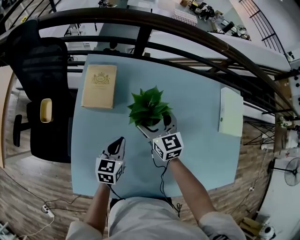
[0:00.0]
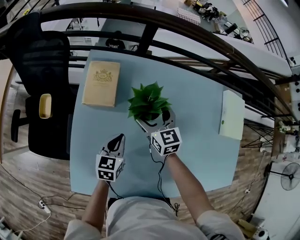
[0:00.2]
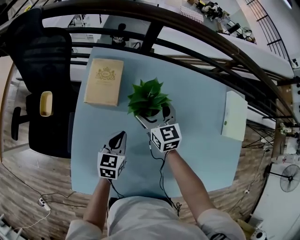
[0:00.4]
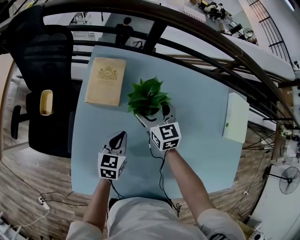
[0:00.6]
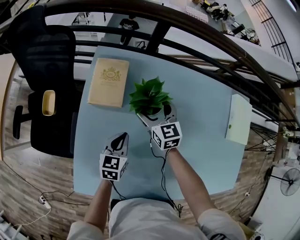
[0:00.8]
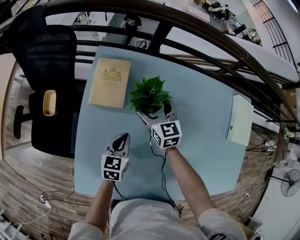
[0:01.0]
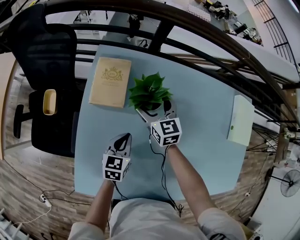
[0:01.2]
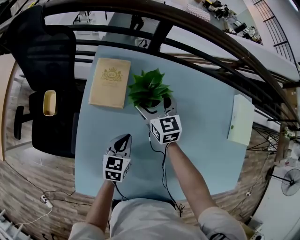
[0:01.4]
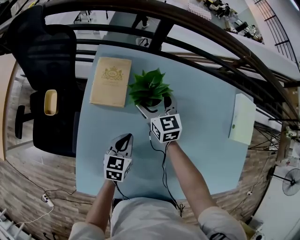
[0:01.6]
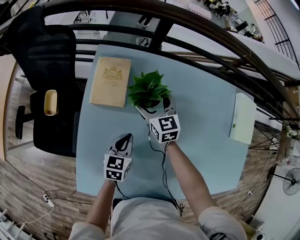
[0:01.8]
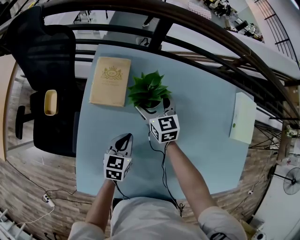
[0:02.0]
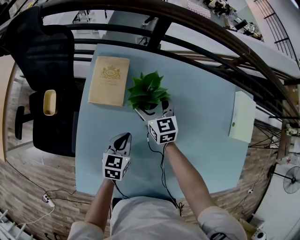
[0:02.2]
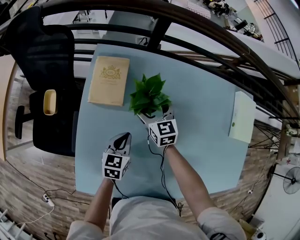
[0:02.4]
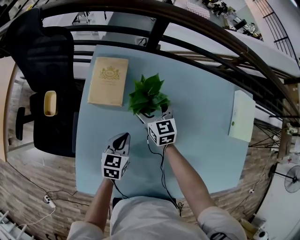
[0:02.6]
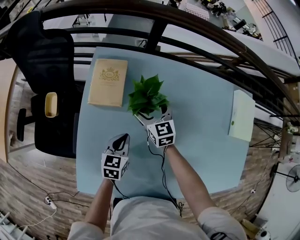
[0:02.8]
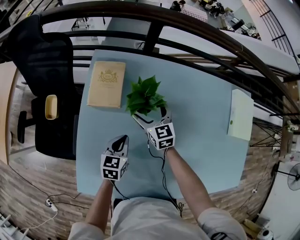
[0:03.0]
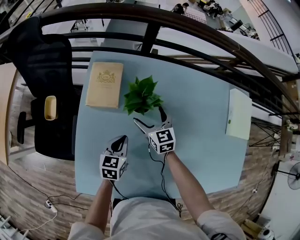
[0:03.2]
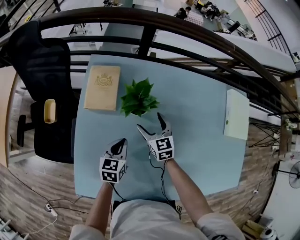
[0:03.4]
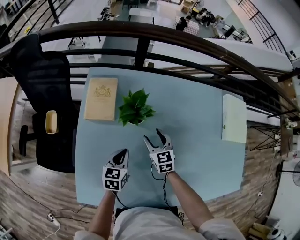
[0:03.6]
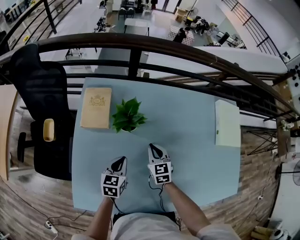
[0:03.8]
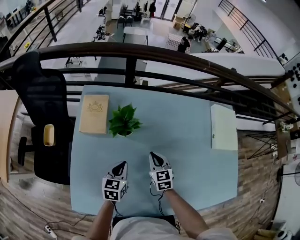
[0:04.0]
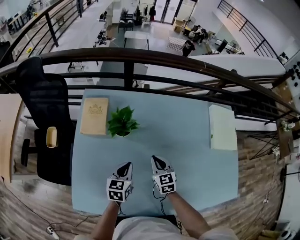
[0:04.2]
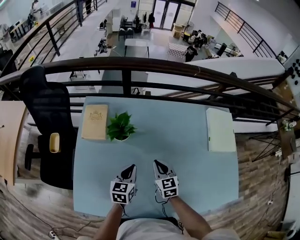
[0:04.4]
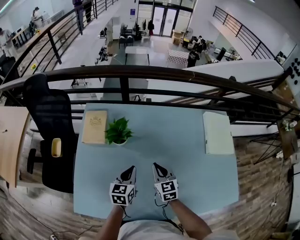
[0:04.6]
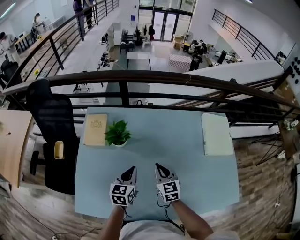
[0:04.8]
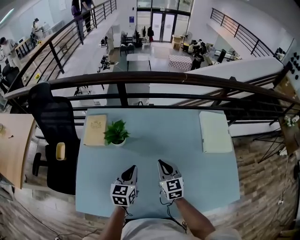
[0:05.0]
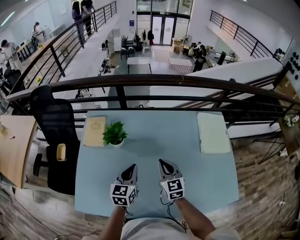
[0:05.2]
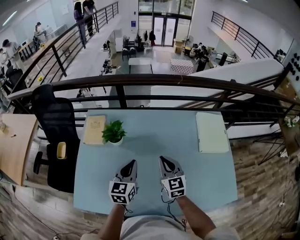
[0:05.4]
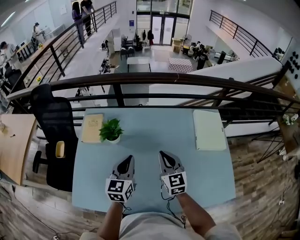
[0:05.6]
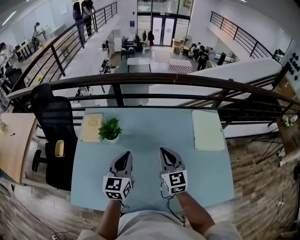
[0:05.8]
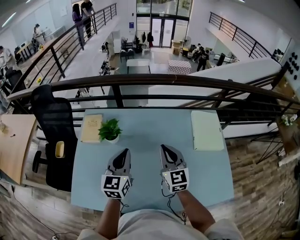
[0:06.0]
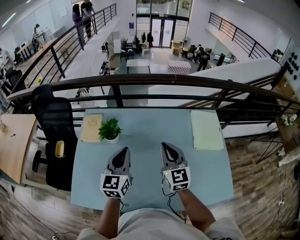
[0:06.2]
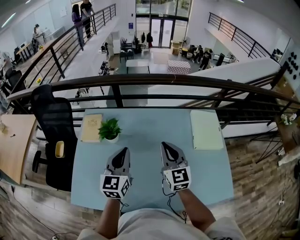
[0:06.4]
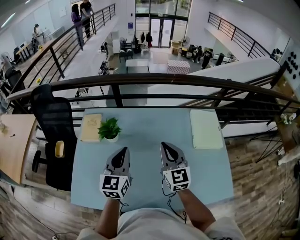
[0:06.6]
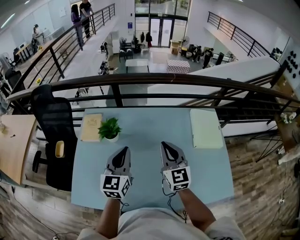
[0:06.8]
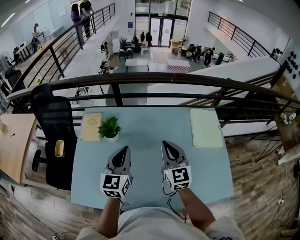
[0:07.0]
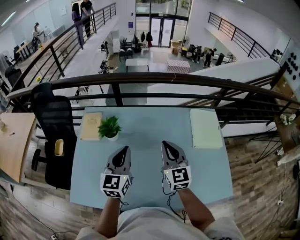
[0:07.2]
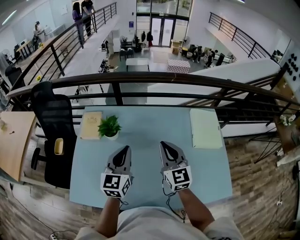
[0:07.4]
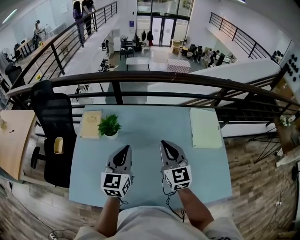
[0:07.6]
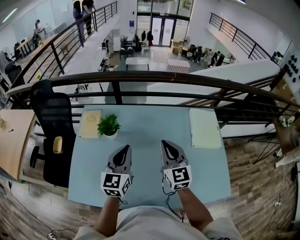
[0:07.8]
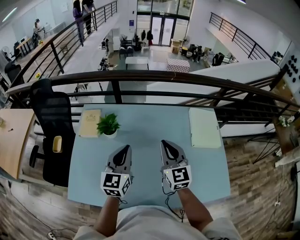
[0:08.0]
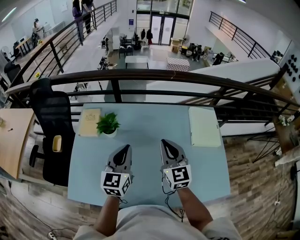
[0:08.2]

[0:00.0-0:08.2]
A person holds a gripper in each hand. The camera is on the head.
0:00.0 to 0:01.6: The right gripper goes roughly 10 cm forward and to the left.
0:01.6 to 0:03.2: The right gripper heads backward, covering some 5 cm.
0:03.2 to 0:05.0: The left gripper goes some 20 cm to the right and upward; the right gripper shifts about 30 cm to the right, backward and upward, and closes.
0:05.0 to 0:06.6: Both grippers travel together upward, about 15 cm. The left gripper changes its angle by roughly 20 degrees.
0:06.6 to 0:08.2: The grippers move only a little.

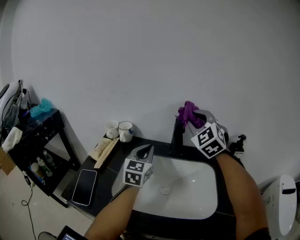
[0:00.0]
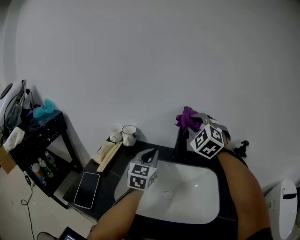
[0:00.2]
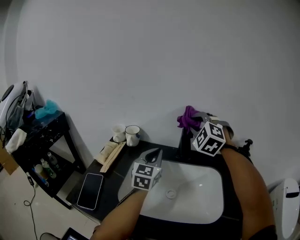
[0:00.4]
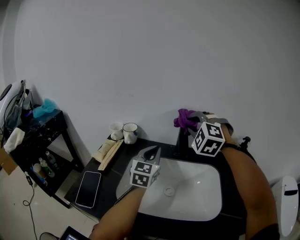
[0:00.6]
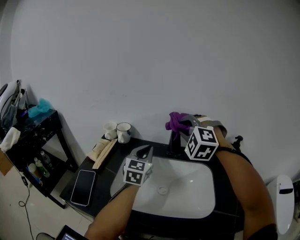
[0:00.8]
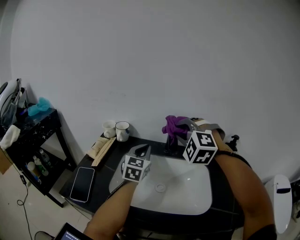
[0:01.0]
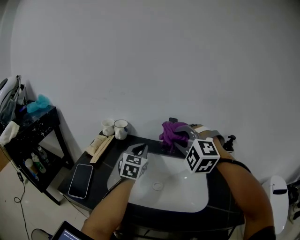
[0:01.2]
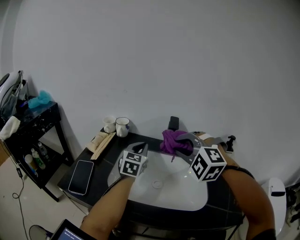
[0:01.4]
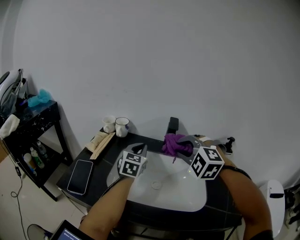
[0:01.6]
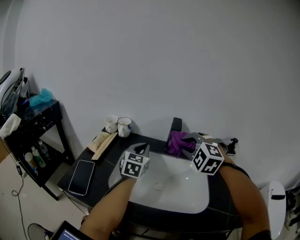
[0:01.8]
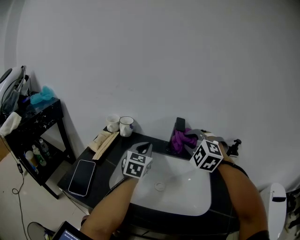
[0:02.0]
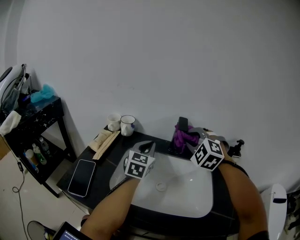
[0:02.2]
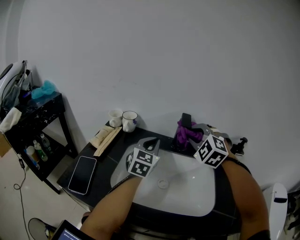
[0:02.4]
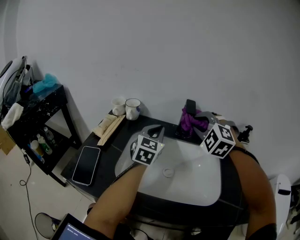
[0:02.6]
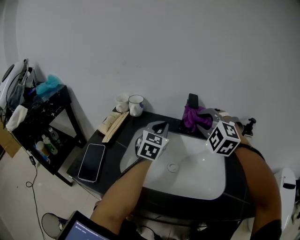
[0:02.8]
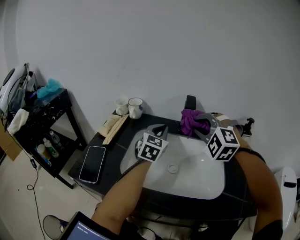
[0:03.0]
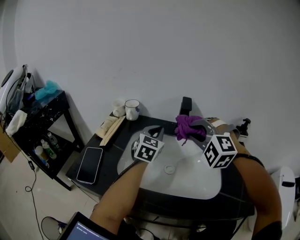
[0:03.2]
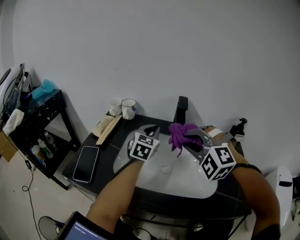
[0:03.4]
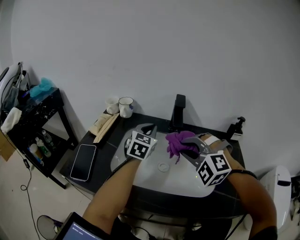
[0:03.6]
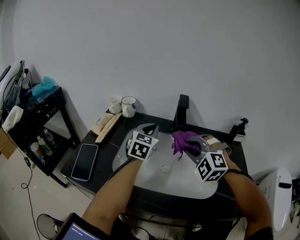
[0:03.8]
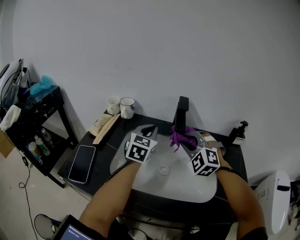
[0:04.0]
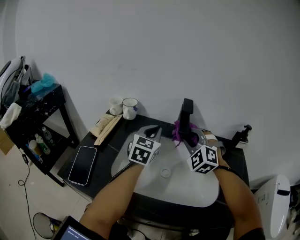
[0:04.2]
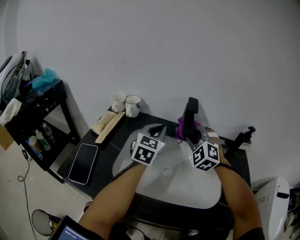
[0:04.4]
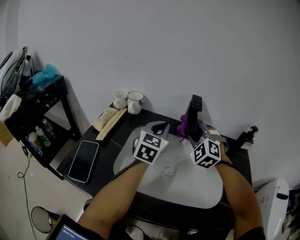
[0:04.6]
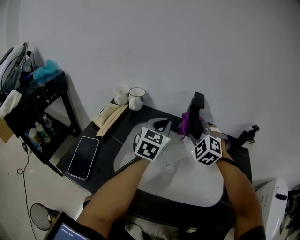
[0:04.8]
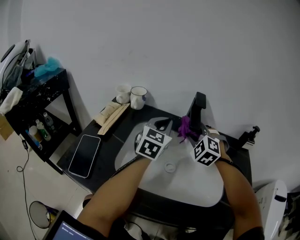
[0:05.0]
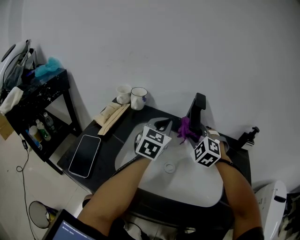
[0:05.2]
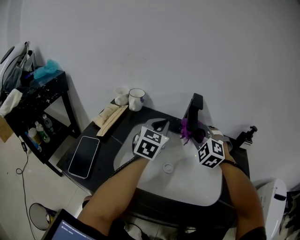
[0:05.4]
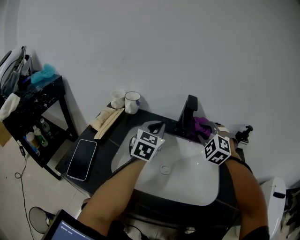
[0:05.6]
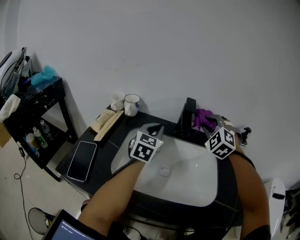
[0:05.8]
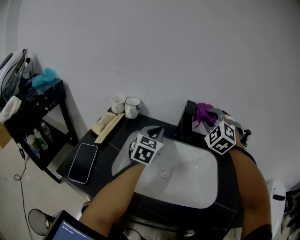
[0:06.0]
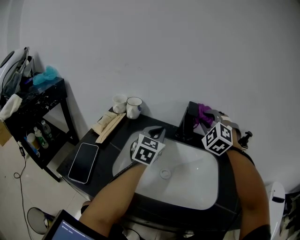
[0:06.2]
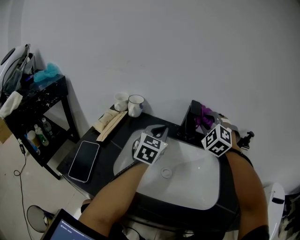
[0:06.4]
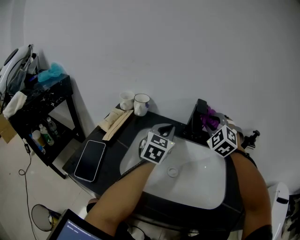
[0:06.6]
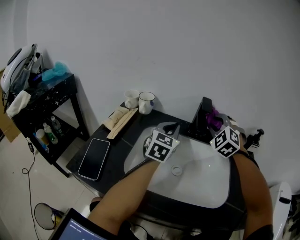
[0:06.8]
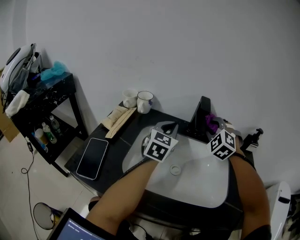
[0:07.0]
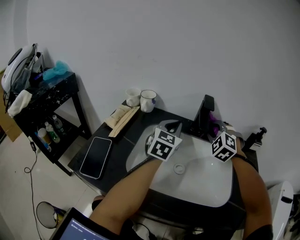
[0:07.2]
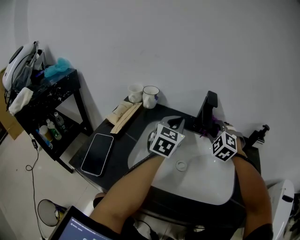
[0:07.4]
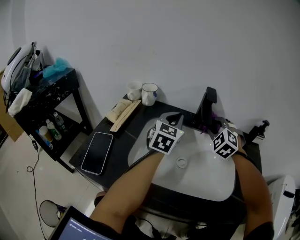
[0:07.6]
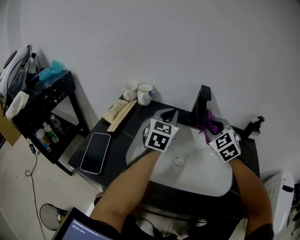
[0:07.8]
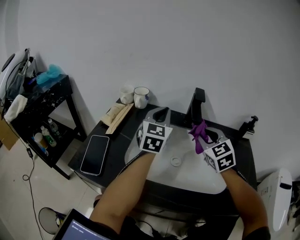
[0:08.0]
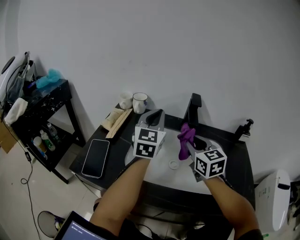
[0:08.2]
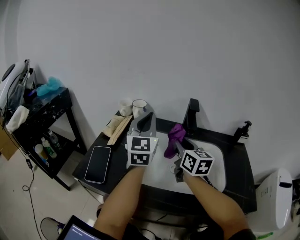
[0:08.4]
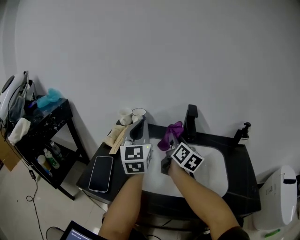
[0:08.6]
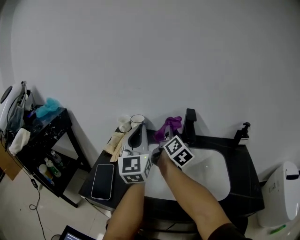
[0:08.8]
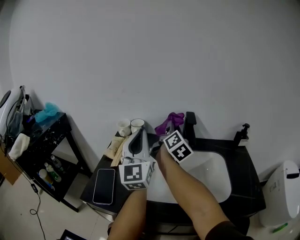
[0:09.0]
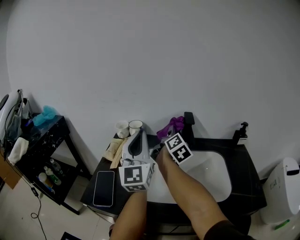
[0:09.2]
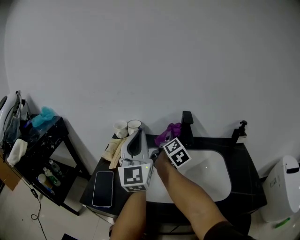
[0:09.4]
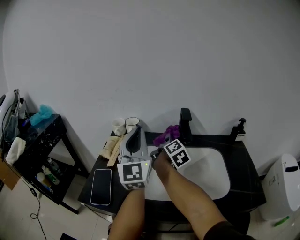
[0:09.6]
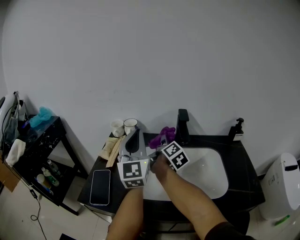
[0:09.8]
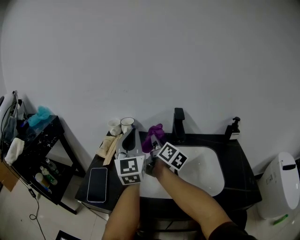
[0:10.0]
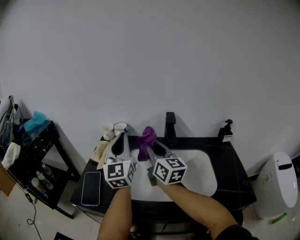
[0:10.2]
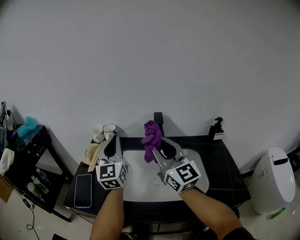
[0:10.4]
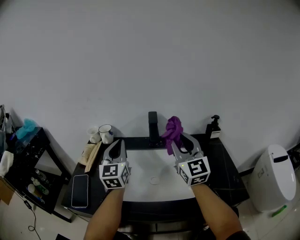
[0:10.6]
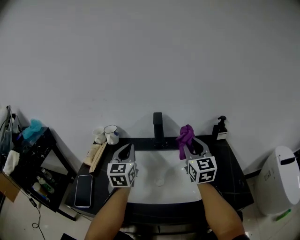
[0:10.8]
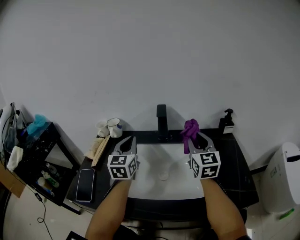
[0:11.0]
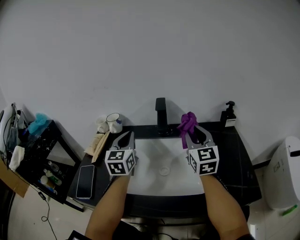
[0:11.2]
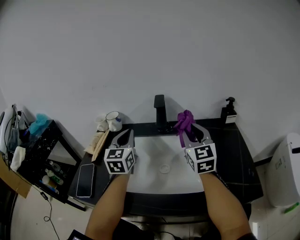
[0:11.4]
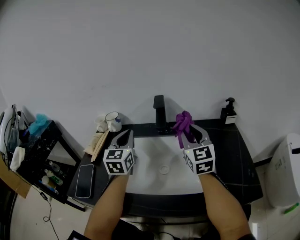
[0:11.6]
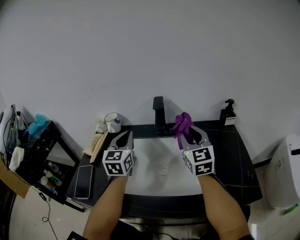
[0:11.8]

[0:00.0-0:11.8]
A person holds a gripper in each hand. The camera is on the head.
0:00.0 to 0:01.4: The right gripper is displaced backward and downward by about 15 cm, and turns by about 40 degrees.
0:01.4 to 0:03.0: The right gripper is displaced forward by approximately 5 cm.
0:03.0 to 0:04.4: The right gripper travels downward and forward by some 10 cm.
0:04.4 to 0:06.0: The right gripper shifts approximately 10 cm upward and to the right.
0:06.0 to 0:07.4: The right gripper heads downward, covering approximately 10 cm.
0:07.4 to 0:08.8: The left gripper travels upward, to the left and backward by approximately 20 cm, and turns by roughly 30 degrees. The right gripper travels to the left and upward by roughly 15 cm, goes backward and returns, some 10 cm each way, and rotates around the line of its fingers by about 110 degrees, clockwise from behind.
0:08.8 to 0:10.4: The right gripper moves backward and upward, roughly 20 cm, and rolls counterclockwise, seen from behind, by approximately 40 degrees.
0:10.4 to 0:11.8: The right gripper heads to the right, downward and forward, covering some 15 cm, and changes its angle by some 30 degrees. The left gripper goes roughly 10 cm downward and to the right, and changes its angle by some 20 degrees.

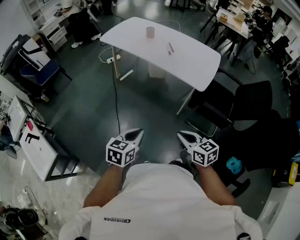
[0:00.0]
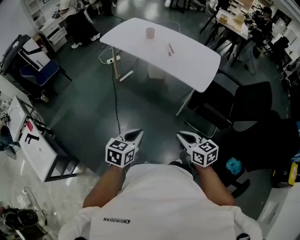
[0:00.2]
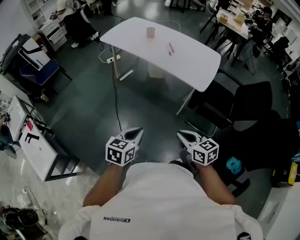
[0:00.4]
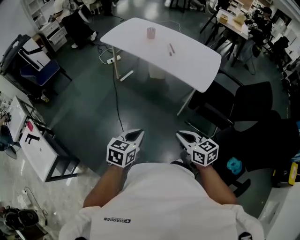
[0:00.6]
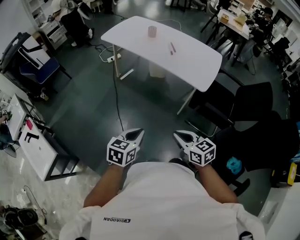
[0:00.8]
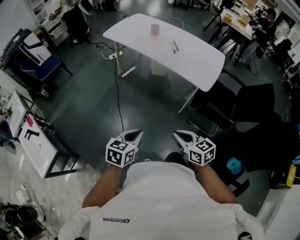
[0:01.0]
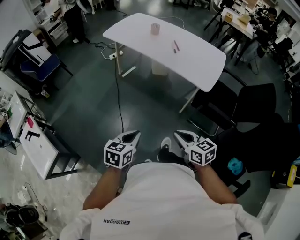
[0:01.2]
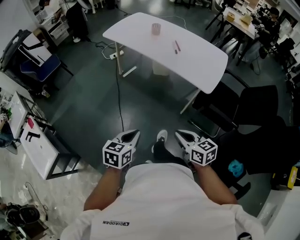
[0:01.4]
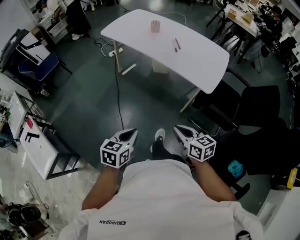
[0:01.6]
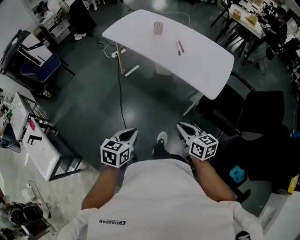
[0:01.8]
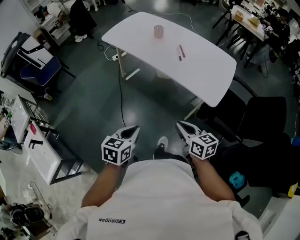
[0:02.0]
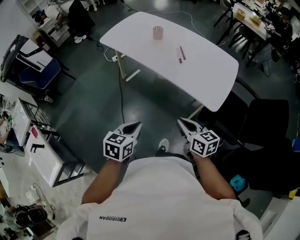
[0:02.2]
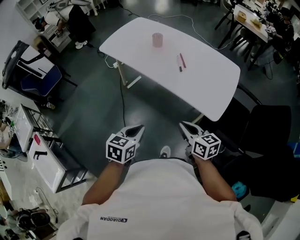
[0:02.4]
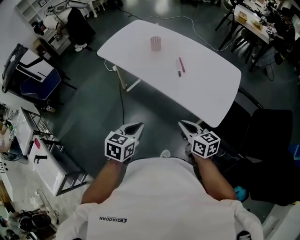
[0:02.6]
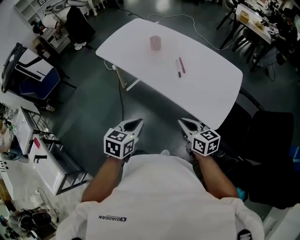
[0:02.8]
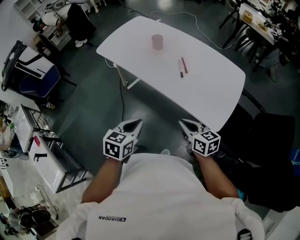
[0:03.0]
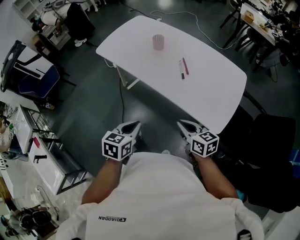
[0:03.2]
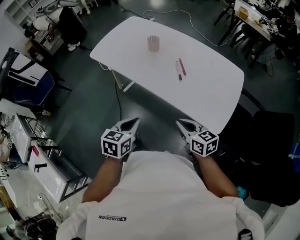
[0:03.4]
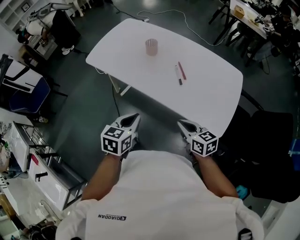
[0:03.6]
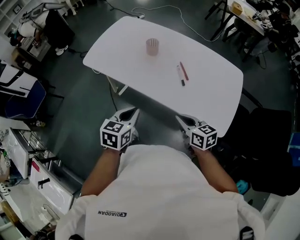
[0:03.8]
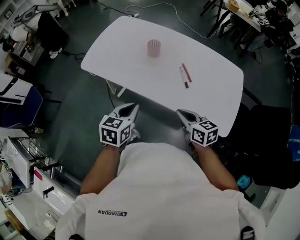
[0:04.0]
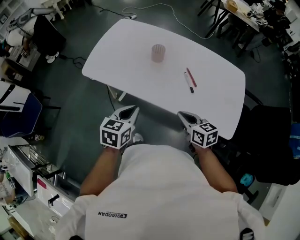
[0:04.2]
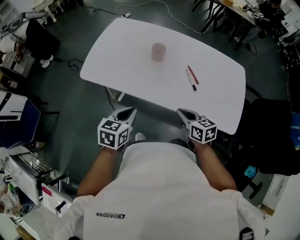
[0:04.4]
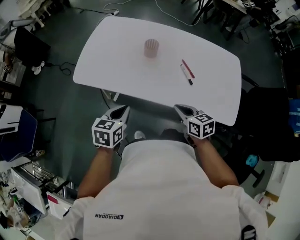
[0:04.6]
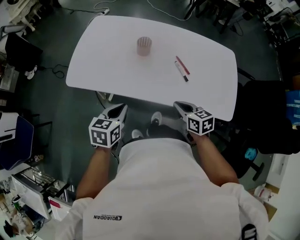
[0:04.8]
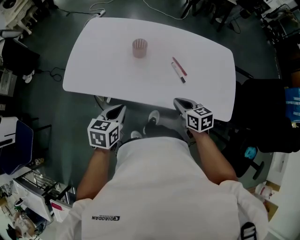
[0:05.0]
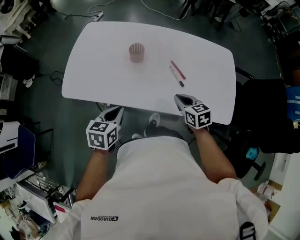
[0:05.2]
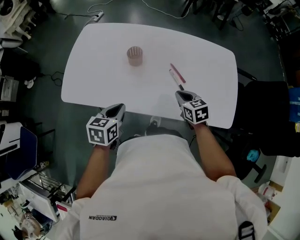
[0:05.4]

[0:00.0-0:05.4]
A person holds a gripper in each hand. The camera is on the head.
0:00.0 to 0:01.4: The right gripper moves roughly 5 cm. The left gripper shifts by about 5 cm.
0:01.4 to 0:02.8: Both grippers move forward, some 35 cm.
0:02.8 to 0:04.0: Both grippers move forward and to the left, roughly 25 cm.
0:04.0 to 0:05.4: The left gripper shifts roughly 15 cm forward. Meanwhile the right gripper shifts roughly 20 cm forward and downward, and turns by some 20 degrees.
